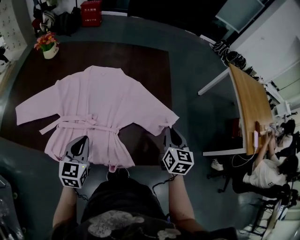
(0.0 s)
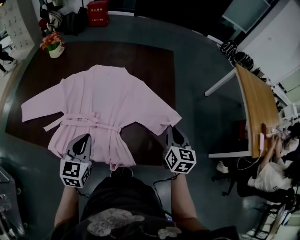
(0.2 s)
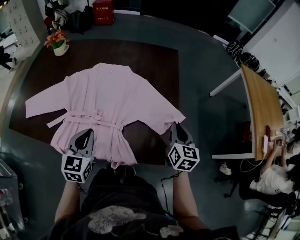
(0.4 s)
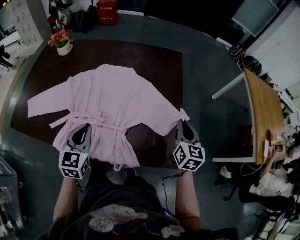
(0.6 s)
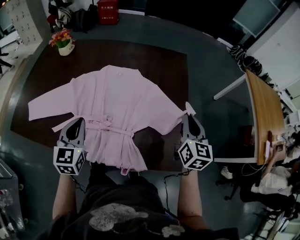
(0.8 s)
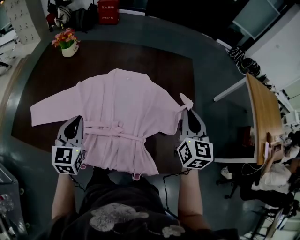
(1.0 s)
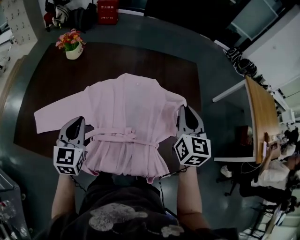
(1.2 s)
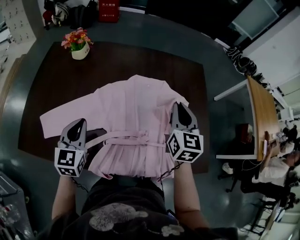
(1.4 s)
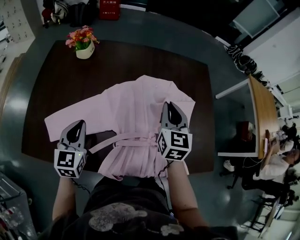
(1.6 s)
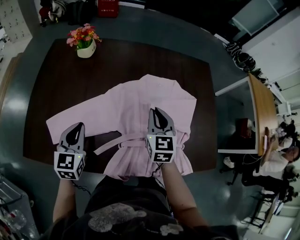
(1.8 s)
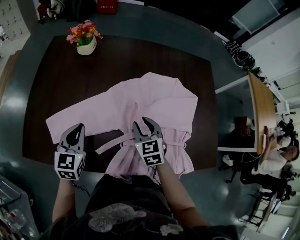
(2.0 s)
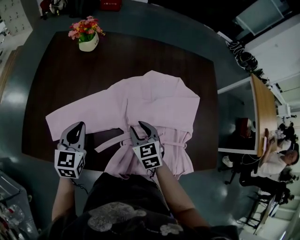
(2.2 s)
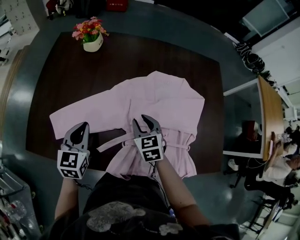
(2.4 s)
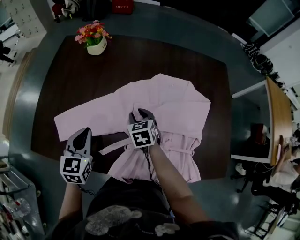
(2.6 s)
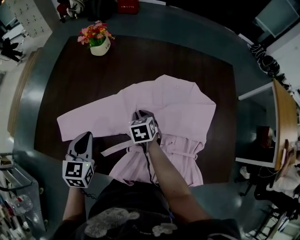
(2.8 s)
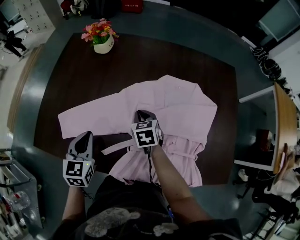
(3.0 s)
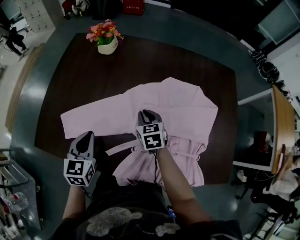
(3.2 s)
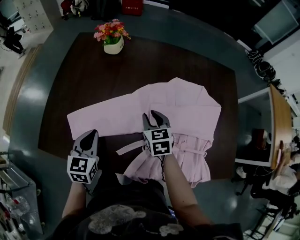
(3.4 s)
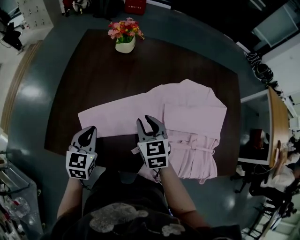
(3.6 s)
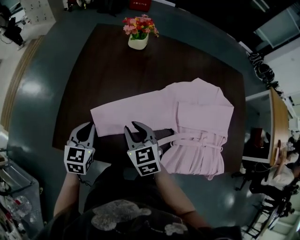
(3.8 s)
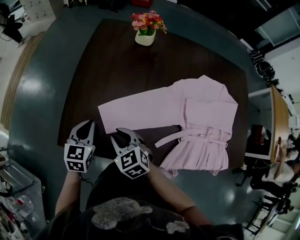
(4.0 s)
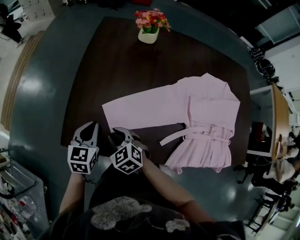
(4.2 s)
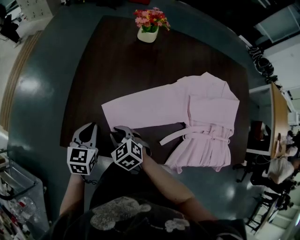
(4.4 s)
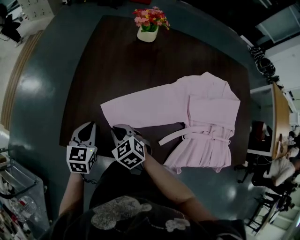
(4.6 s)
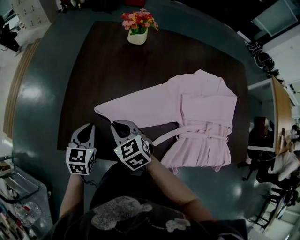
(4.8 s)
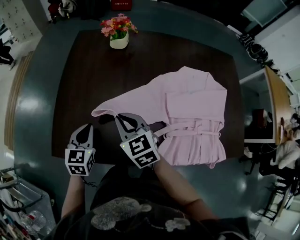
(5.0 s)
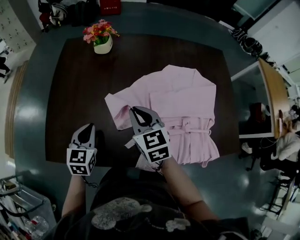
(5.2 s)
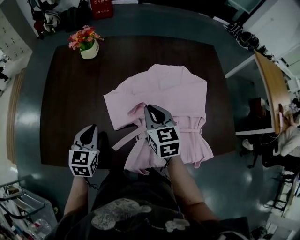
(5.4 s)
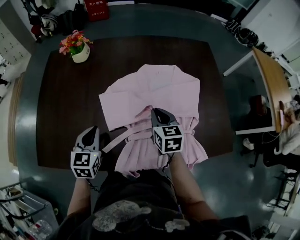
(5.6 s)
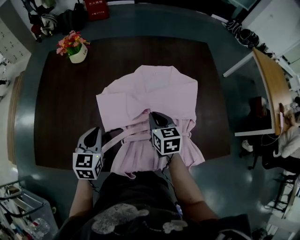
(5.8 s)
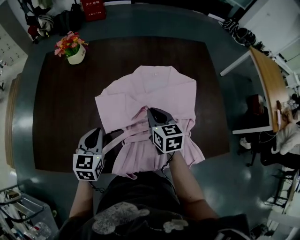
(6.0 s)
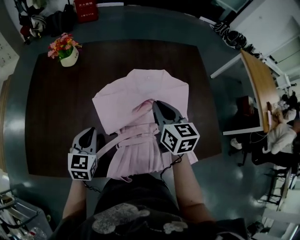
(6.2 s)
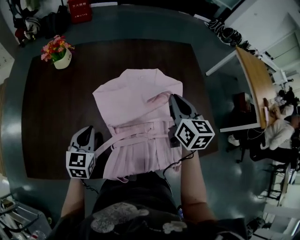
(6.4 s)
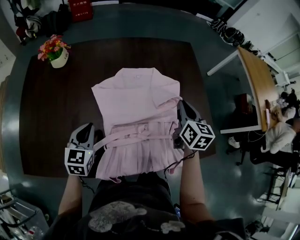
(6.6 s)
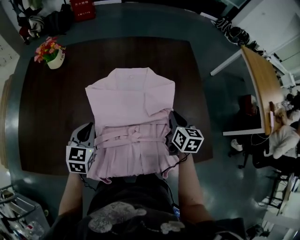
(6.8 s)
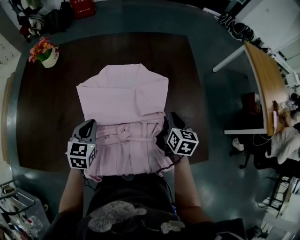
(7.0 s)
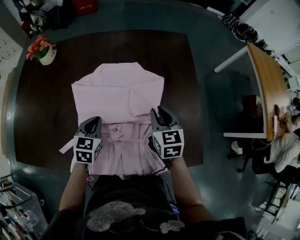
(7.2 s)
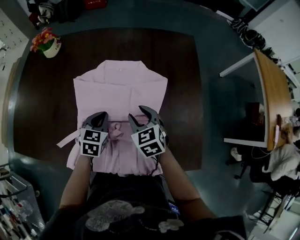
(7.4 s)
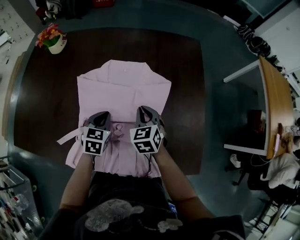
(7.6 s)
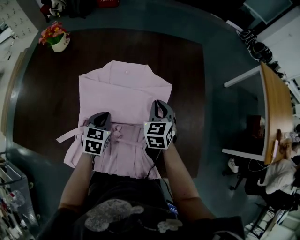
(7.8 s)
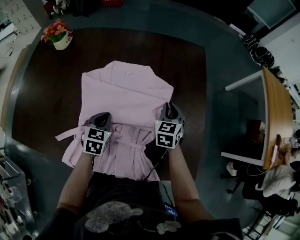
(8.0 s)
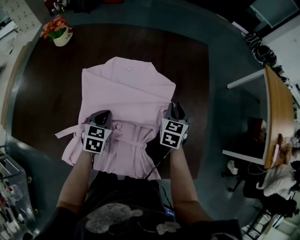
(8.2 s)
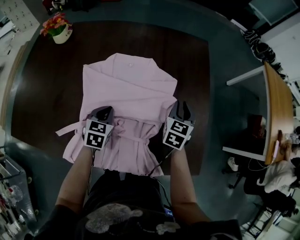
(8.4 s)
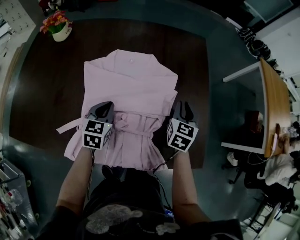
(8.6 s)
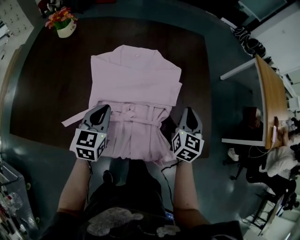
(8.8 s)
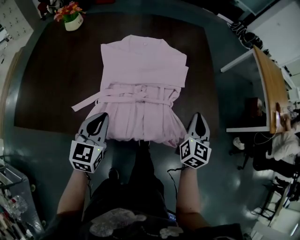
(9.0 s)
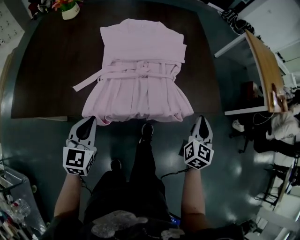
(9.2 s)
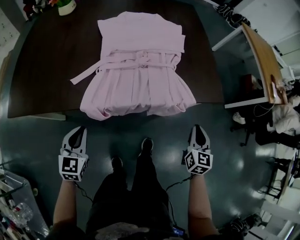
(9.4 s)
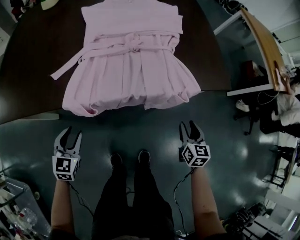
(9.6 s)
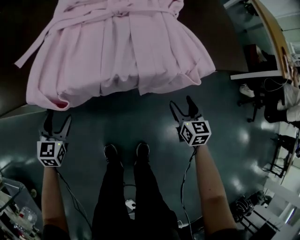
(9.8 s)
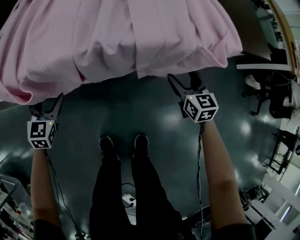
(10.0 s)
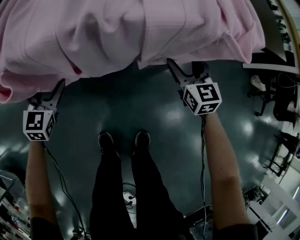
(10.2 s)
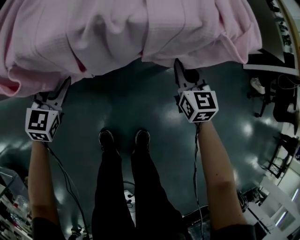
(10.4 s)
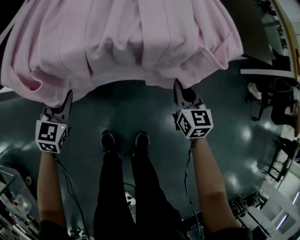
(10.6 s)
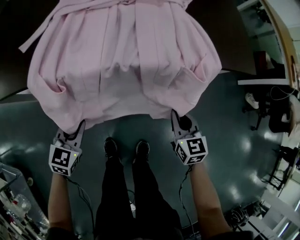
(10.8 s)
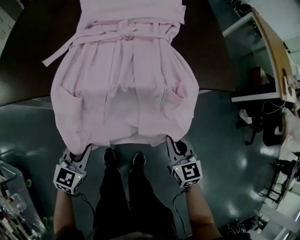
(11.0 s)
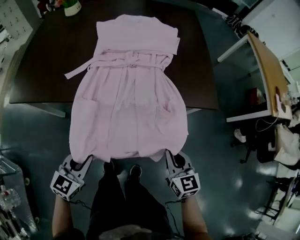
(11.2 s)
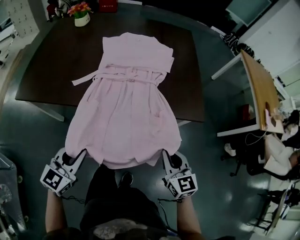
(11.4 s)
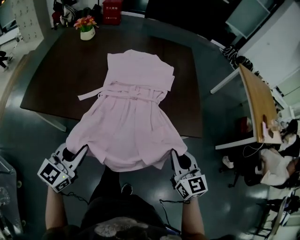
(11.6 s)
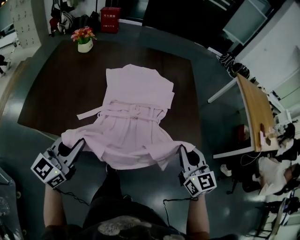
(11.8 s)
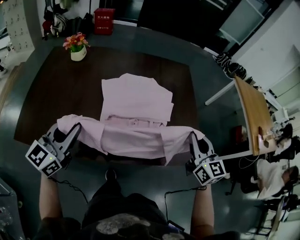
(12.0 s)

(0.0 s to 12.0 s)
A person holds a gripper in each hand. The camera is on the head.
0.0 s - 1.6 s: The grippers both shift to the left by approximately 35 cm.
1.6 s - 3.0 s: The left gripper shifts by approximately 5 cm, while the right gripper is displaced downward and to the left by roughly 25 cm, turns by roughly 40 degrees, and opens, then closes again.
3.0 s - 4.4 s: The grippers both shift to the left by approximately 35 cm. The right gripper changes its angle by about 30 degrees.
4.4 s - 6.0 s: Both grippers move to the right, about 40 cm. The right gripper rotates some 50 degrees.
6.0 s - 7.6 s: Both grippers move to the right, about 20 cm. The right gripper swivels some 30 degrees, and opens, then closes once more.
7.6 s - 9.0 s: The right gripper moves backward and to the right, about 25 cm, and changes its angle by about 50 degrees. The left gripper heads backward, covering about 20 cm, and rotates roughly 20 degrees.
9.0 s - 10.4 s: The grippers both shift downward by about 35 cm. The left gripper opens up, while the right gripper swivels about 30 degrees, and opens, then closes once more.
10.4 s - 12.0 s: Both grippers travel together upward, approximately 50 cm. The left gripper tips its fingers upward by about 30 degrees, and closes its fingers. The right gripper swivels roughly 20 degrees.

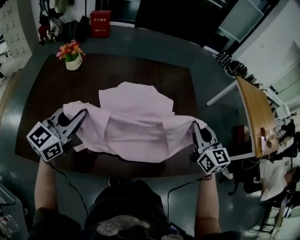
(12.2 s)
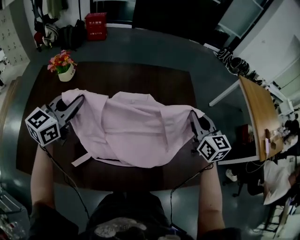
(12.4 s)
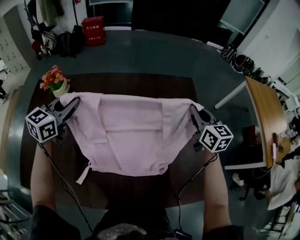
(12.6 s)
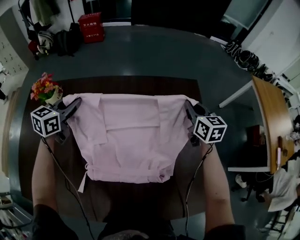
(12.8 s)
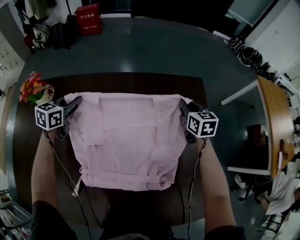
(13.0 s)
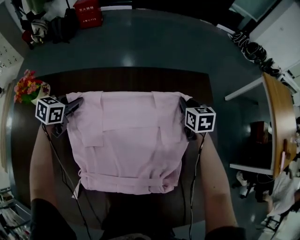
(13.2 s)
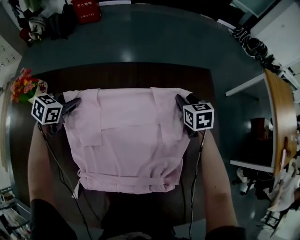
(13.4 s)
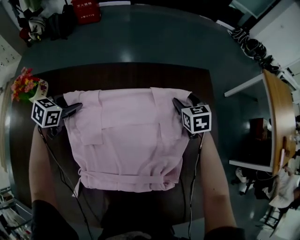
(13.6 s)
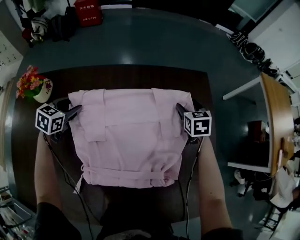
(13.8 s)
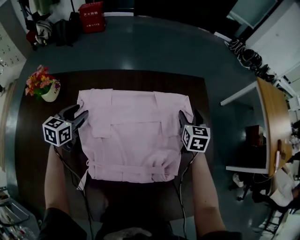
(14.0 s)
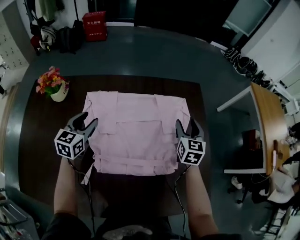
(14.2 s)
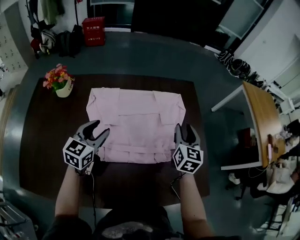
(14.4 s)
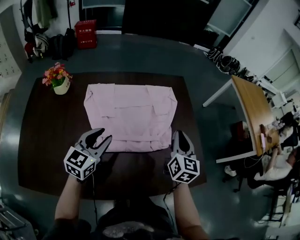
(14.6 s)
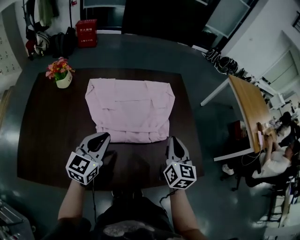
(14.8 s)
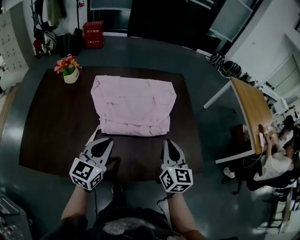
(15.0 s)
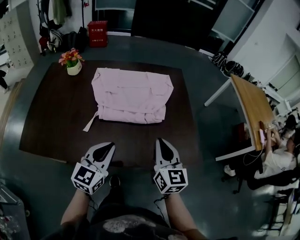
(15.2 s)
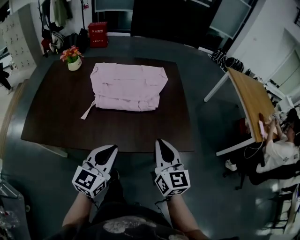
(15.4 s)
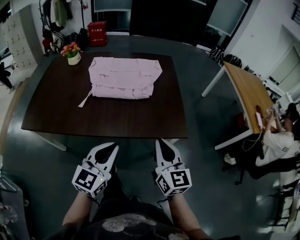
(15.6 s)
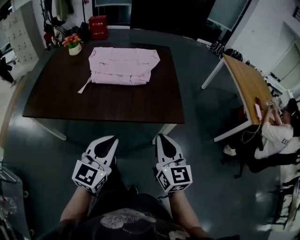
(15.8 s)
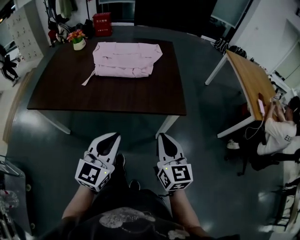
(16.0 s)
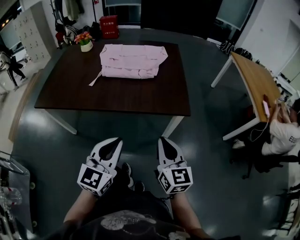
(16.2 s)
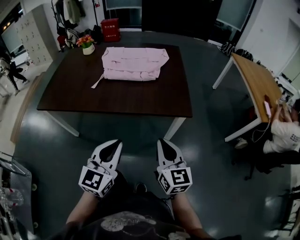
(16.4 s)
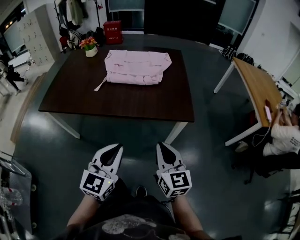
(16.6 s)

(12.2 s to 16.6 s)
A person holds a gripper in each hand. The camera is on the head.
12.2 s - 13.6 s: The two grippers go approximately 50 cm forward and downward. The right gripper tips its fingers downward by some 30 degrees, and opens. The left gripper tilts its fingers approximately 40 degrees downward, and opens its fingers.
13.6 s - 15.2 s: Both grippers are carried backward, some 50 cm. The left gripper tips its fingers upward by some 40 degrees, and closes up, while the right gripper angles its fingers upward, by some 30 degrees, and closes its fingers.
15.2 s - 16.6 s: The left gripper shifts roughly 35 cm backward and to the right. Meanwhile the right gripper heads backward, covering about 30 cm.

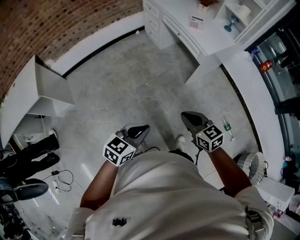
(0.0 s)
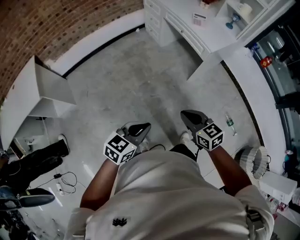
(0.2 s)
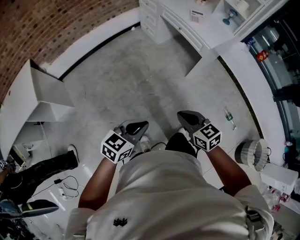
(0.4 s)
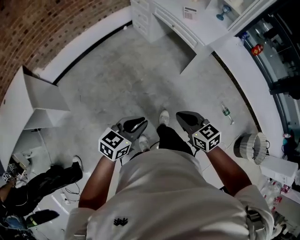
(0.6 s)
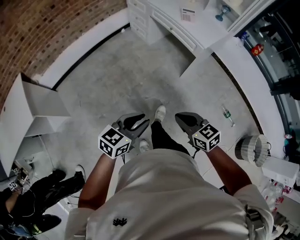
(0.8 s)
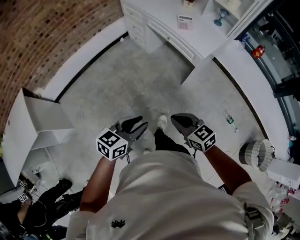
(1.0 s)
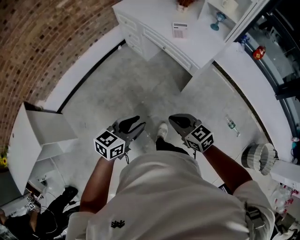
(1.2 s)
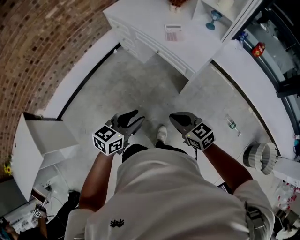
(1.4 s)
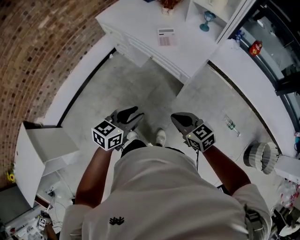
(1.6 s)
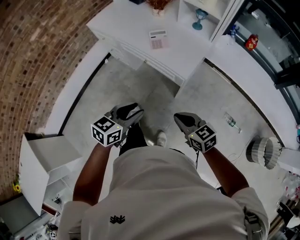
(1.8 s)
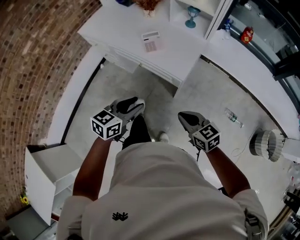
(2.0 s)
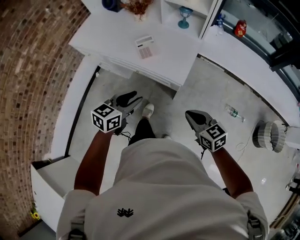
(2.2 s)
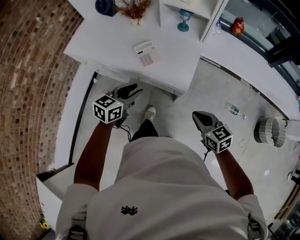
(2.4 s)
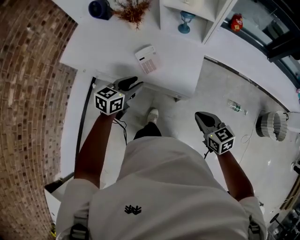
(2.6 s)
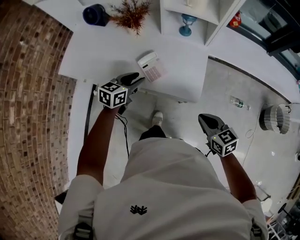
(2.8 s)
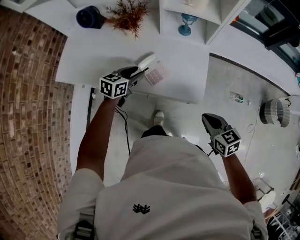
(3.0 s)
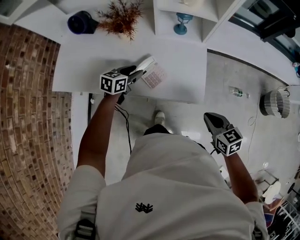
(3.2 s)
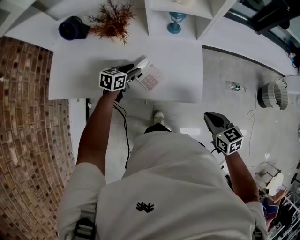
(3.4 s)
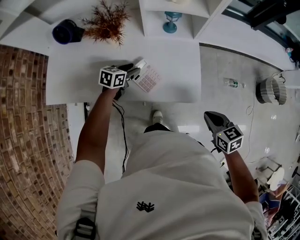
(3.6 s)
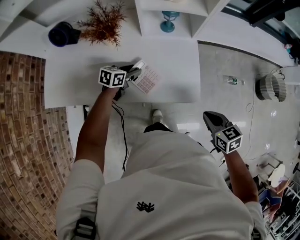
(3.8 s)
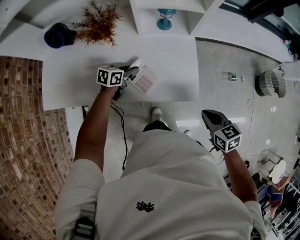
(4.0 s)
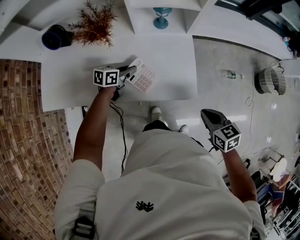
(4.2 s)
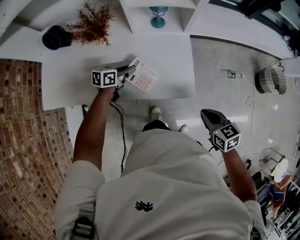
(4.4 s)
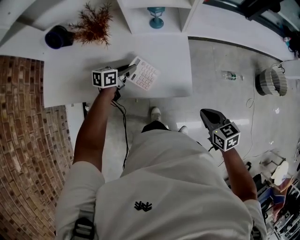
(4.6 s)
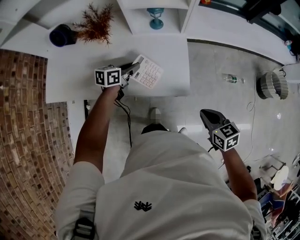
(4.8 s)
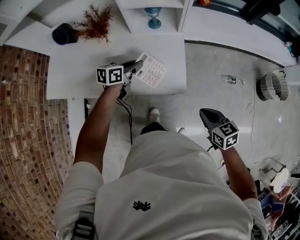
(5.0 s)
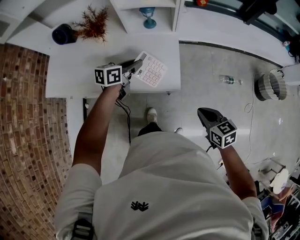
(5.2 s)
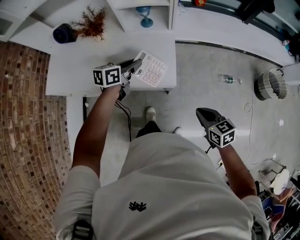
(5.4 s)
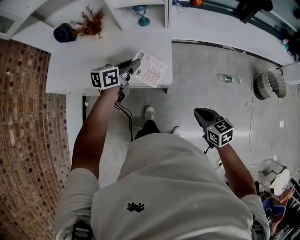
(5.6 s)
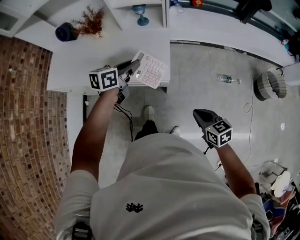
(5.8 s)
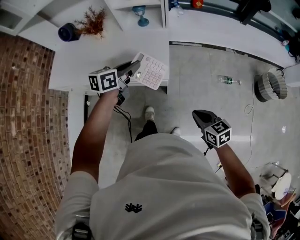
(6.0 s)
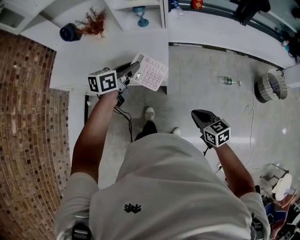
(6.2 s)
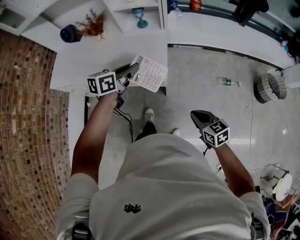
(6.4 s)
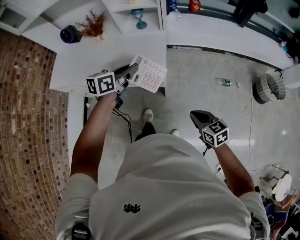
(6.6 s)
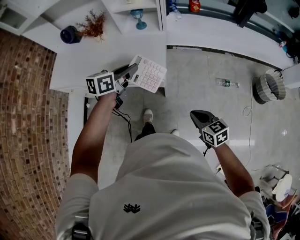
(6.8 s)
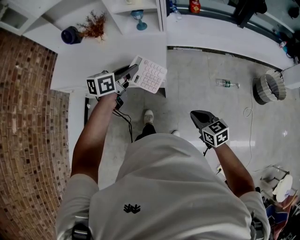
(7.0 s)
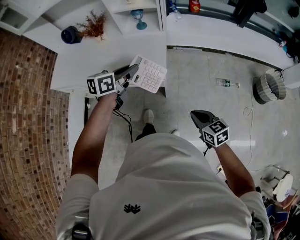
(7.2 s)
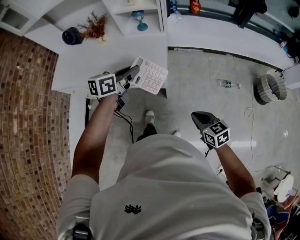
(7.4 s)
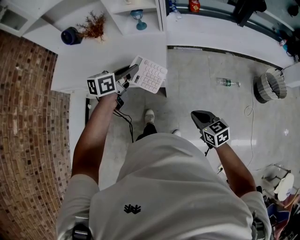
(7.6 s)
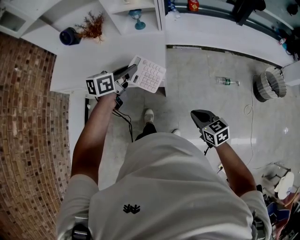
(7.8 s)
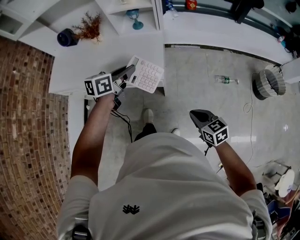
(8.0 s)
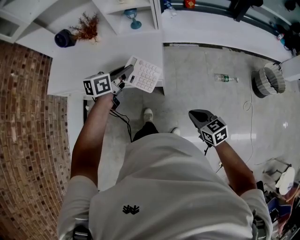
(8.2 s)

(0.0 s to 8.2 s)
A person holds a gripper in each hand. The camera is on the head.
0.0 s - 1.6 s: Both grippers travel together forward, some 35 cm. The left gripper opens its fingers.
1.6 s - 3.2 s: The right gripper moves roughly 25 cm, and changes its angle by approximately 50 degrees; the left gripper ends up about 60 cm from where it was, and rotates approximately 30 degrees.
3.2 s - 5.0 s: The left gripper shifts approximately 15 cm to the right, and closes up. The right gripper shifts approximately 10 cm to the right.
5.0 s - 6.6 s: The left gripper is displaced backward, upward and to the right by some 20 cm. Meanwhile the right gripper moves backward and to the right, about 15 cm.
6.6 s - 8.2 s: The grippers stay close to where they were, moving slightly.
